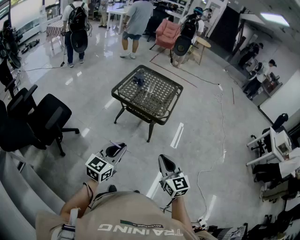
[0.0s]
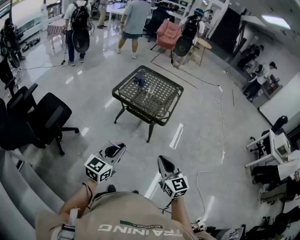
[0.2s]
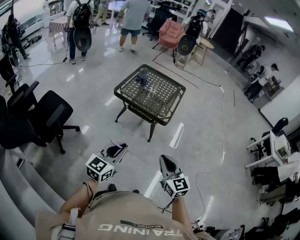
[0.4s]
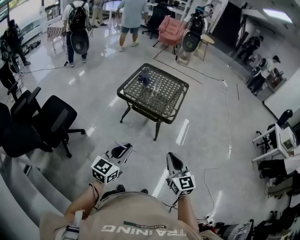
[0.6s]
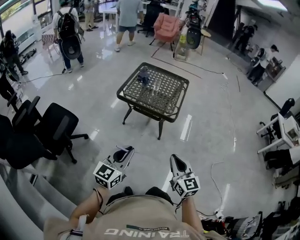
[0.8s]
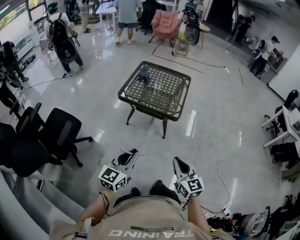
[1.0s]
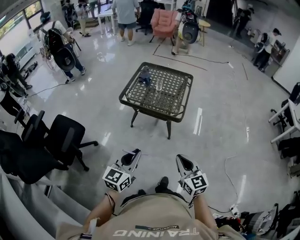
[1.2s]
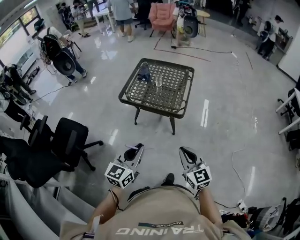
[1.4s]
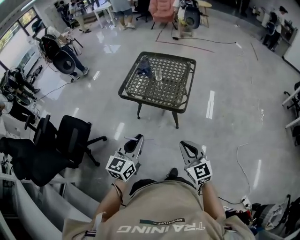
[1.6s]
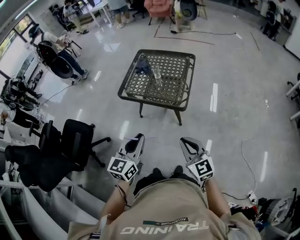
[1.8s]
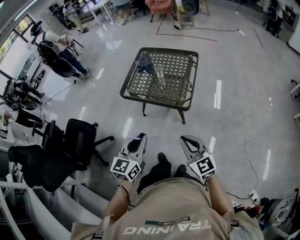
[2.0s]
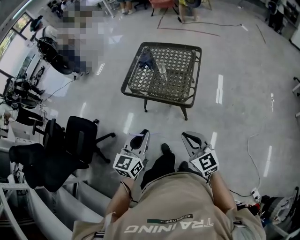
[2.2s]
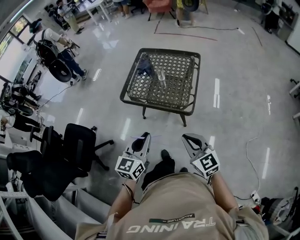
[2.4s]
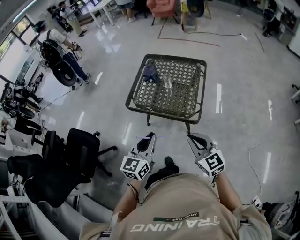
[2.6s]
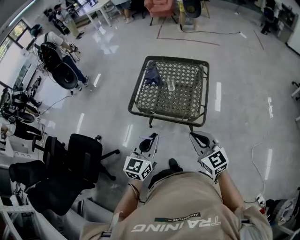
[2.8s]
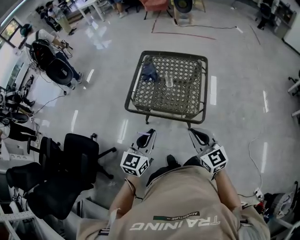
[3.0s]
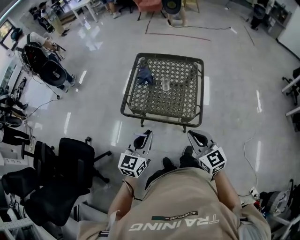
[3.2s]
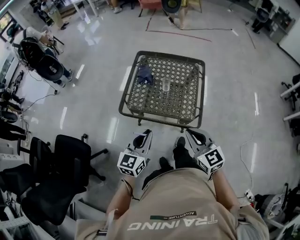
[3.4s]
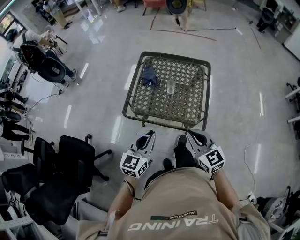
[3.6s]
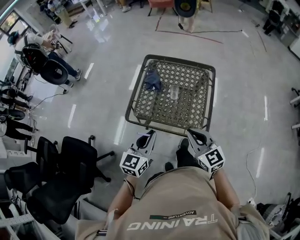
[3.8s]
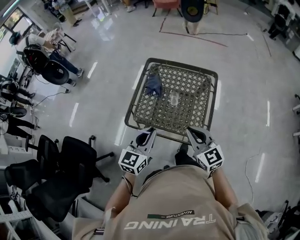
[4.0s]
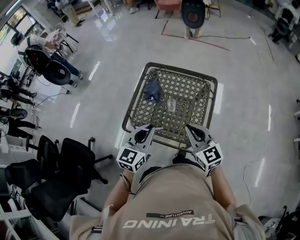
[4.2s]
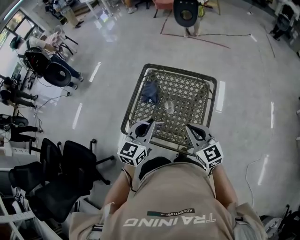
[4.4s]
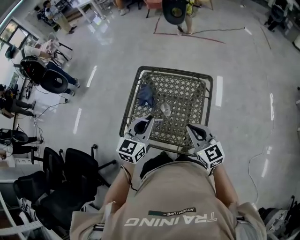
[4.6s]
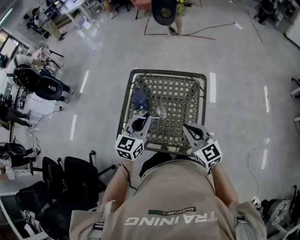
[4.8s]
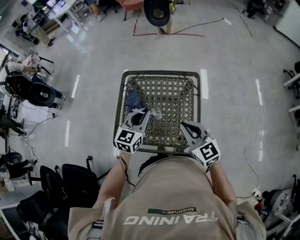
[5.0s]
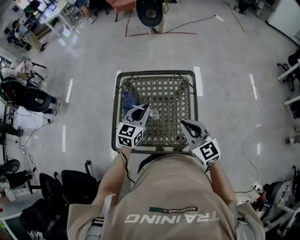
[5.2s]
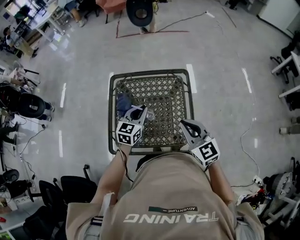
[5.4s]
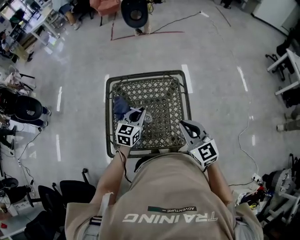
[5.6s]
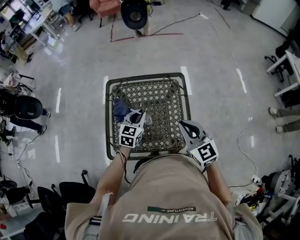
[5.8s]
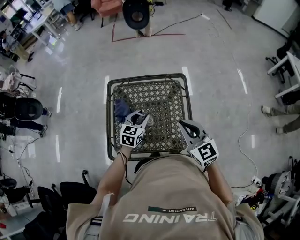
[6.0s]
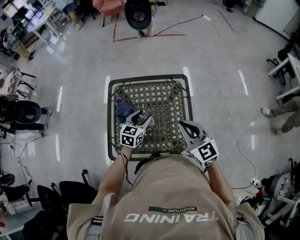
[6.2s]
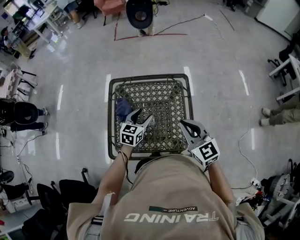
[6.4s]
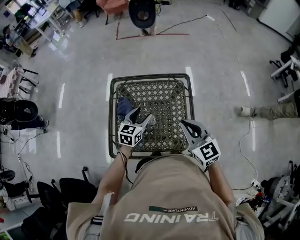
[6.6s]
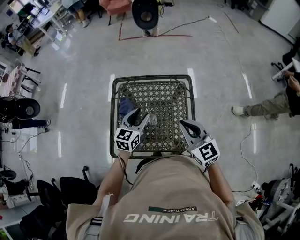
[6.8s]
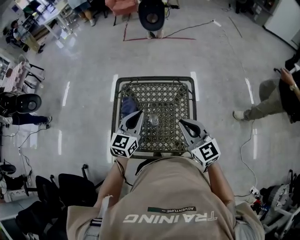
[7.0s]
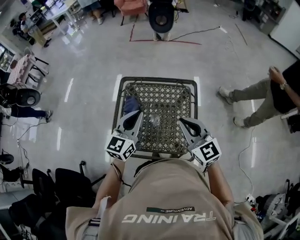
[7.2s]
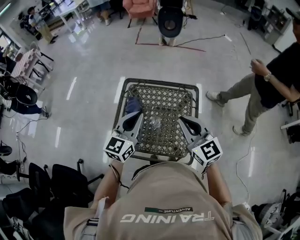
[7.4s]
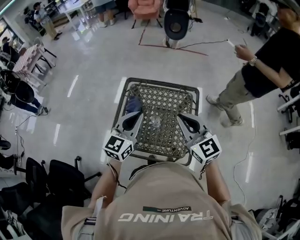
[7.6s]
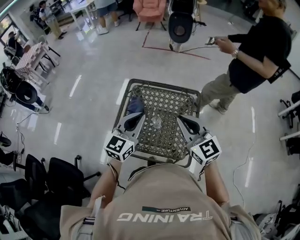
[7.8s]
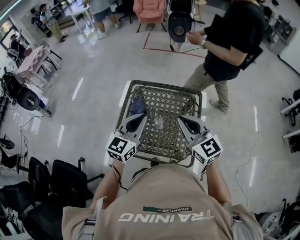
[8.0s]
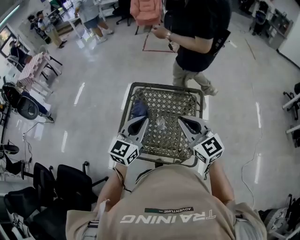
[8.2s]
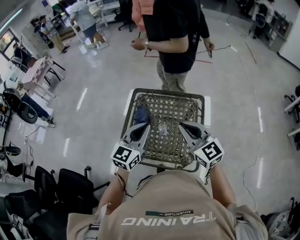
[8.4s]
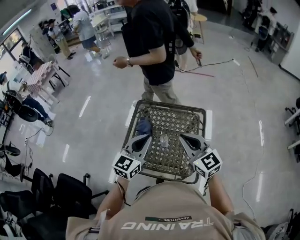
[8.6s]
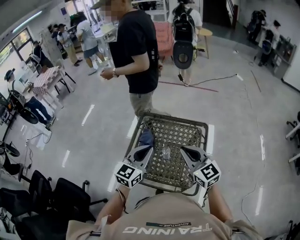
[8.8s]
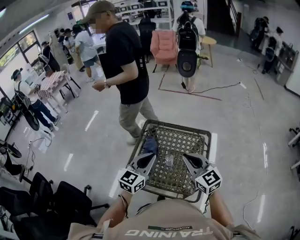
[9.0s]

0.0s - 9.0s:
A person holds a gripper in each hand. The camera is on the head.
0.0s - 1.6s: The two grippers go roughly 10 cm forward.
1.6s - 3.0s: The grippers both shift forward by approximately 25 cm.
3.0s - 4.4s: The grippers both shift forward by about 25 cm.
4.4s - 6.0s: The right gripper heads forward, covering roughly 5 cm. The left gripper heads forward and downward, covering some 20 cm, changes its angle by about 30 degrees, and opens its fingers.
6.0s - 7.6s: The left gripper heads upward and backward, covering some 20 cm, swivels some 30 degrees, and closes its fingers; the right gripper heads upward, covering roughly 10 cm.
7.6s - 9.0s: There are only small adjustments of the grippers.

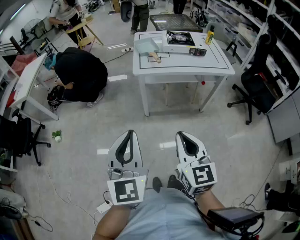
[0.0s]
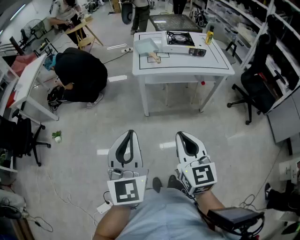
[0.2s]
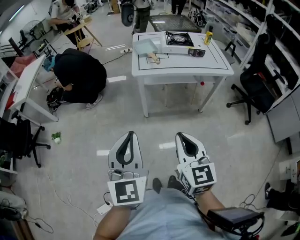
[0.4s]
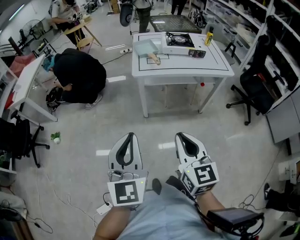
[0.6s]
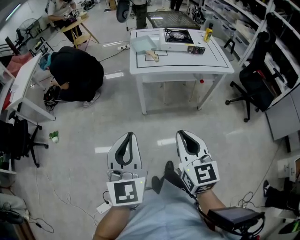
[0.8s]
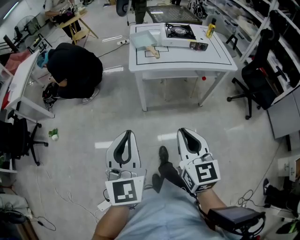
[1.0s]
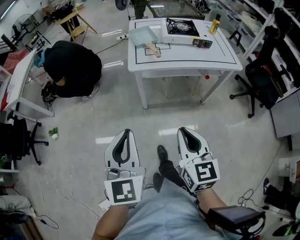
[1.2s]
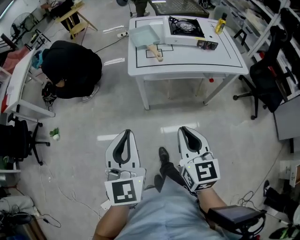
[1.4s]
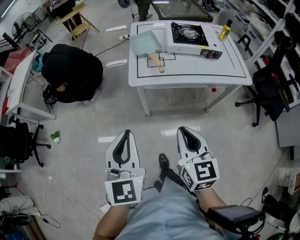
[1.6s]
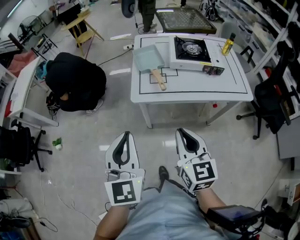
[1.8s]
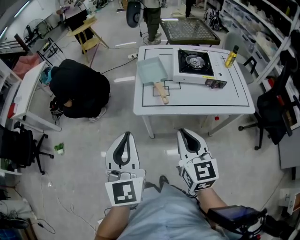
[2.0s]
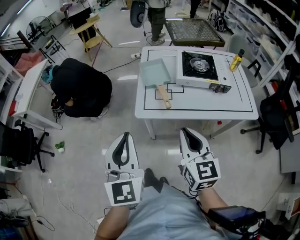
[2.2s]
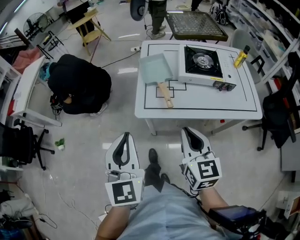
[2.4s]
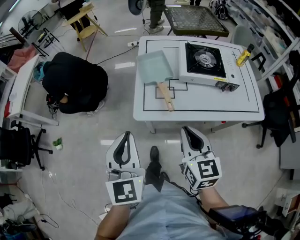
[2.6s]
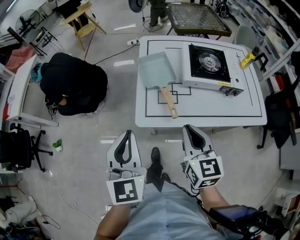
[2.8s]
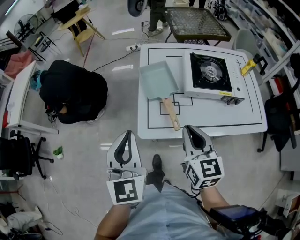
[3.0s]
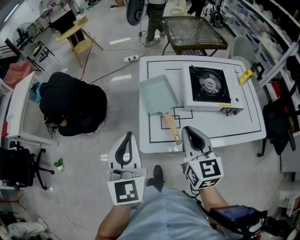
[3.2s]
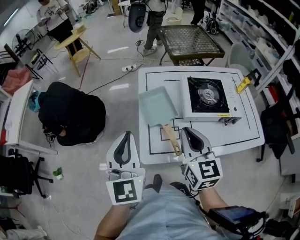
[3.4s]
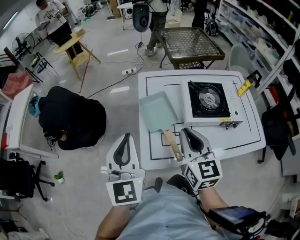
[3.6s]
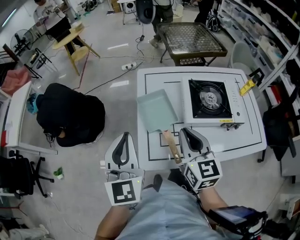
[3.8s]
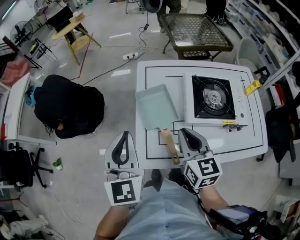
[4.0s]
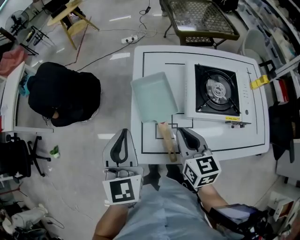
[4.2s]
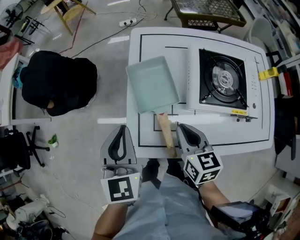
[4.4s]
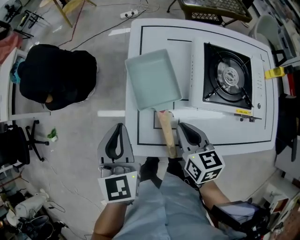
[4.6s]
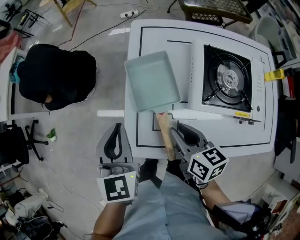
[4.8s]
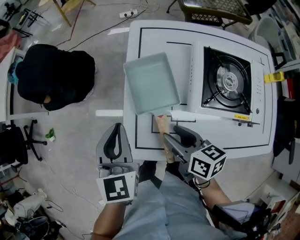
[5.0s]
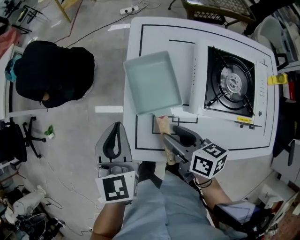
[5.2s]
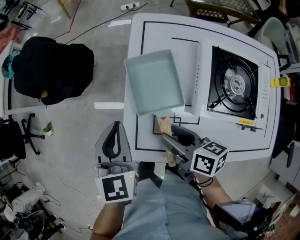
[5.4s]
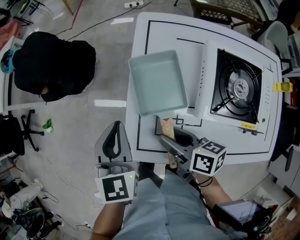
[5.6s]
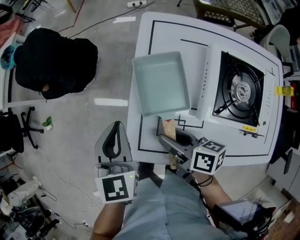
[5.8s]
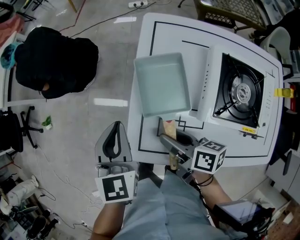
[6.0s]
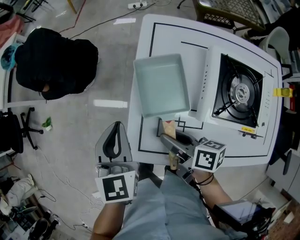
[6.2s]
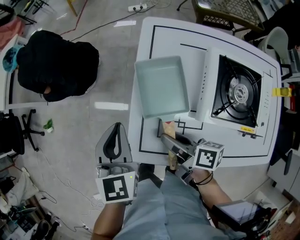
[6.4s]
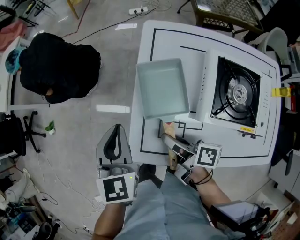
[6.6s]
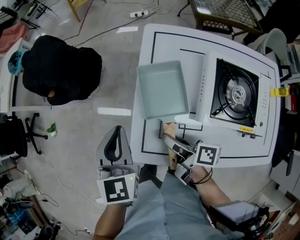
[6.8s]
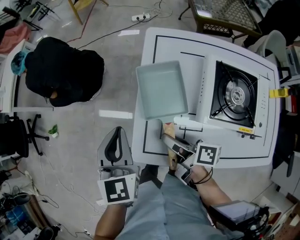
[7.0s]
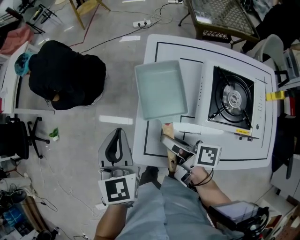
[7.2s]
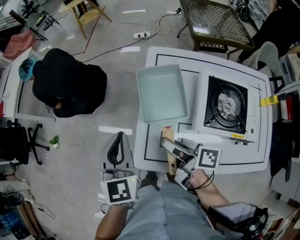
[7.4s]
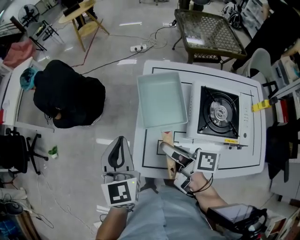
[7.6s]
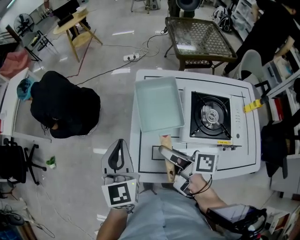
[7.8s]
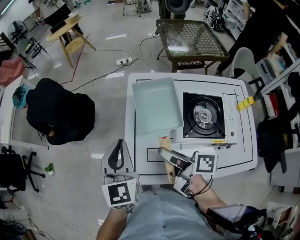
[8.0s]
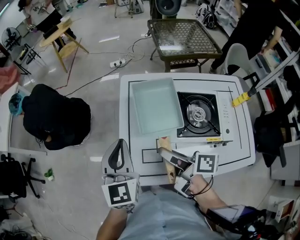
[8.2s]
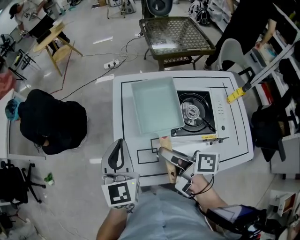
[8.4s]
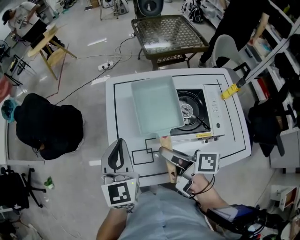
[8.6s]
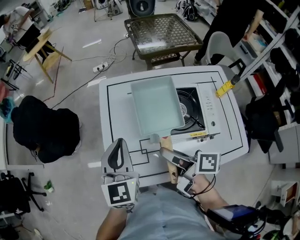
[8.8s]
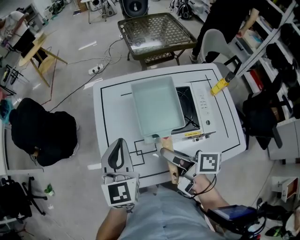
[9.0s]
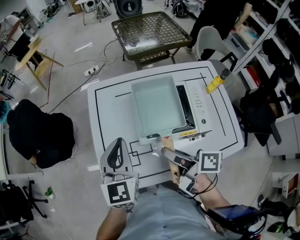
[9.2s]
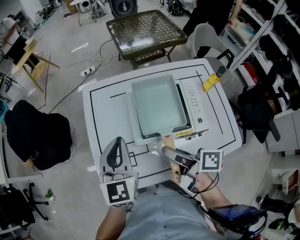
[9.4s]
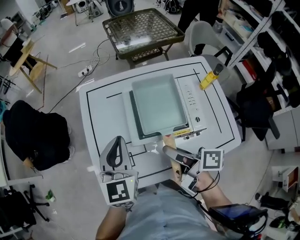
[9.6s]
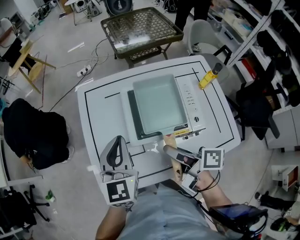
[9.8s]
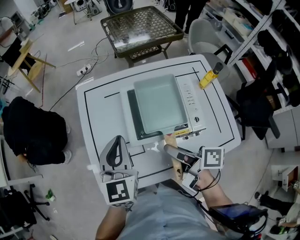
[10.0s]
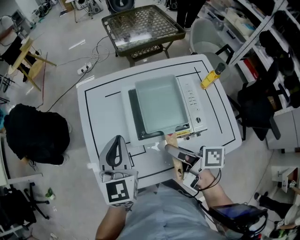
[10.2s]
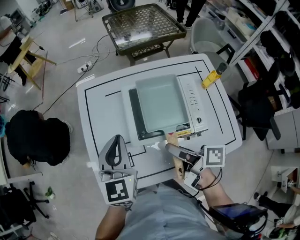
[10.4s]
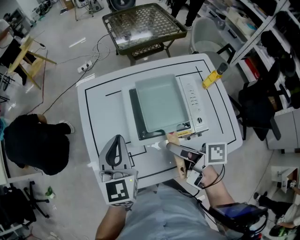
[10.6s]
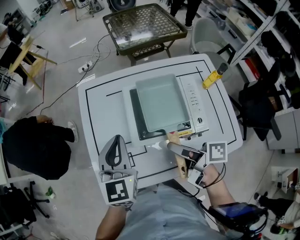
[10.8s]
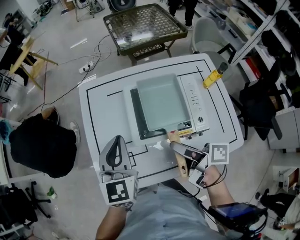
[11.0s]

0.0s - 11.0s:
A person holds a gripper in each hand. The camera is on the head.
0.0s - 1.6s: The grippers both shift forward by about 25 cm.
1.6s - 3.2s: The grippers both shift forward by some 35 cm.
3.2s - 4.8s: The left gripper heads forward and downward, covering approximately 20 cm, while the right gripper is displaced downward and forward by roughly 20 cm, and swivels roughly 40 degrees.
4.8s - 6.2s: The right gripper moves approximately 5 cm, rotates approximately 30 degrees, and opens its fingers.
6.2s - 7.8s: The grippers both shift upward by approximately 15 cm.
7.8s - 9.4s: The left gripper goes about 20 cm to the right. The right gripper travels to the right and backward by about 20 cm.
9.4s - 11.0s: The grippers move only a little.

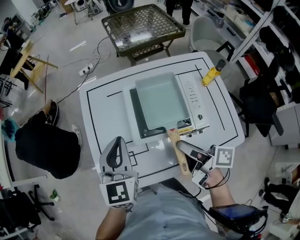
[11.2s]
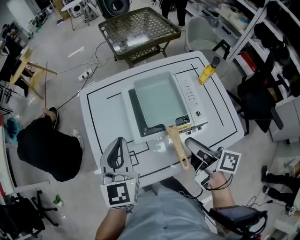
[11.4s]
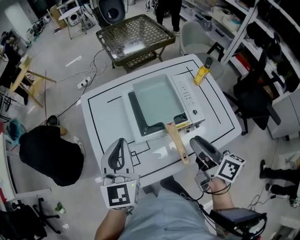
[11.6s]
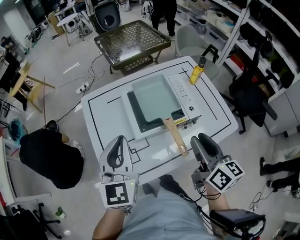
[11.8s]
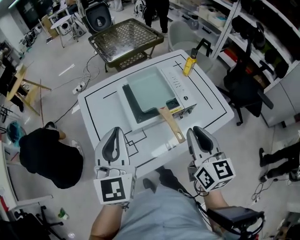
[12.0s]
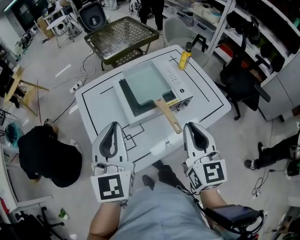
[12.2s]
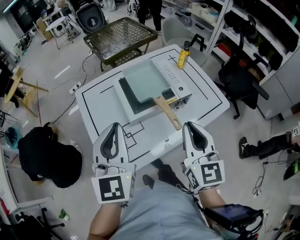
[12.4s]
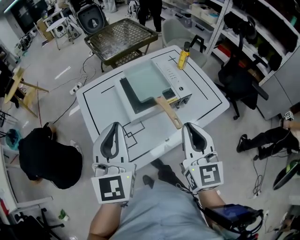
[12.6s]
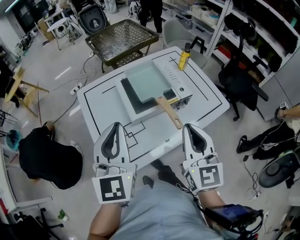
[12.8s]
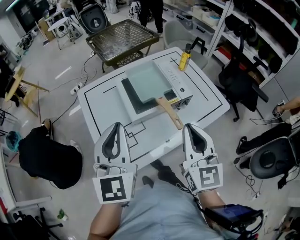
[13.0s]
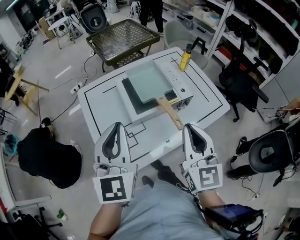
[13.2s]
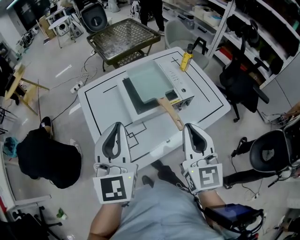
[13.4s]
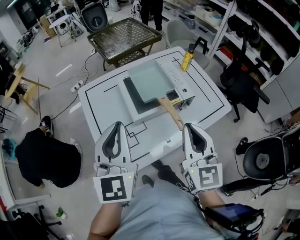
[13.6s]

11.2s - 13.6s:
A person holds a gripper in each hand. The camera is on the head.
11.2s - 12.4s: The left gripper changes place by roughly 15 cm, and turns by roughly 20 degrees. The right gripper shifts by about 20 cm, swivels approximately 80 degrees, and closes its fingers.
12.4s - 13.6s: The grippers stay close to where they were, moving slightly.

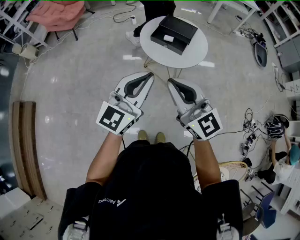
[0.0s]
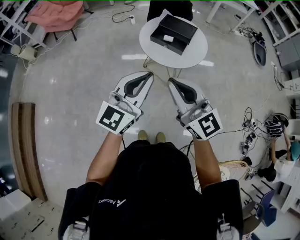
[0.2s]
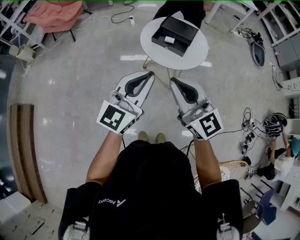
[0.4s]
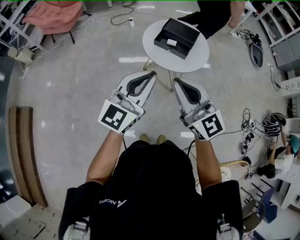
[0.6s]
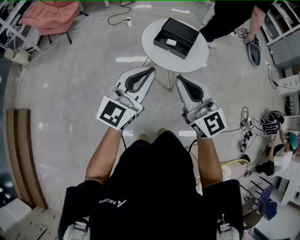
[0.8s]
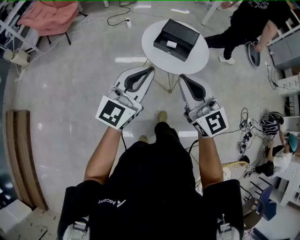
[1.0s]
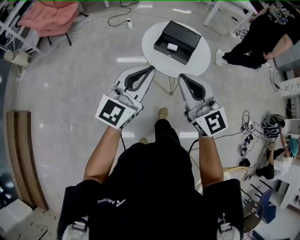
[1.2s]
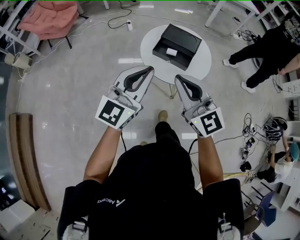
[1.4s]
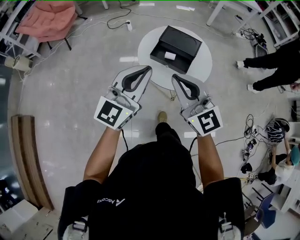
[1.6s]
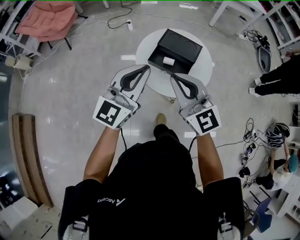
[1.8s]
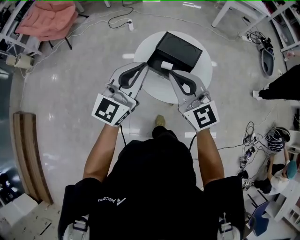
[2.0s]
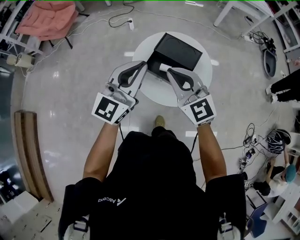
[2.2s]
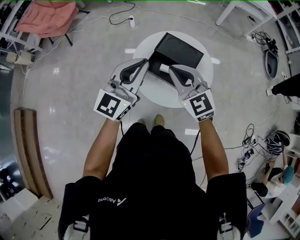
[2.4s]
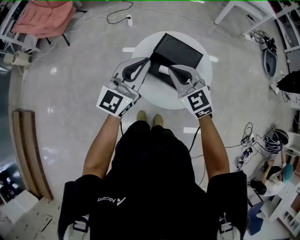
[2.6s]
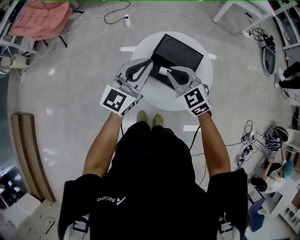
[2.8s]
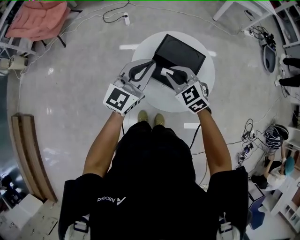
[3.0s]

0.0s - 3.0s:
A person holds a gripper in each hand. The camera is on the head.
0.0s - 1.6s: Both grippers travel together forward, roughly 20 cm.
1.6s - 3.0s: Both grippers travel together forward and downward, approximately 30 cm. The right gripper tilts its fingers roughly 40 degrees downward.
